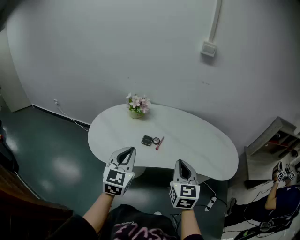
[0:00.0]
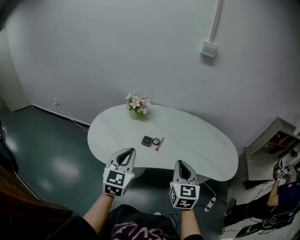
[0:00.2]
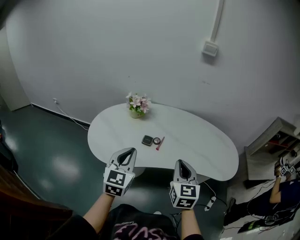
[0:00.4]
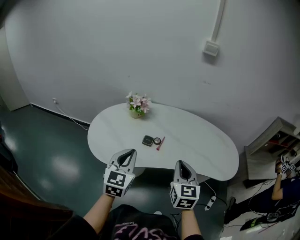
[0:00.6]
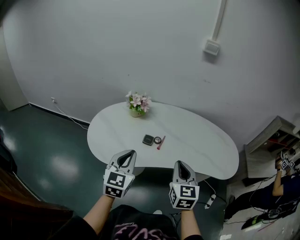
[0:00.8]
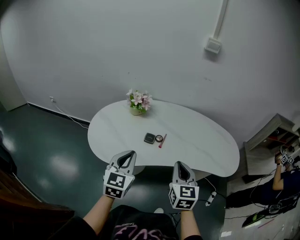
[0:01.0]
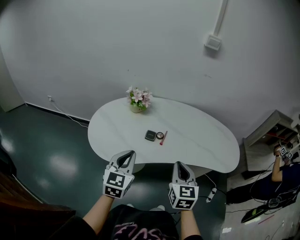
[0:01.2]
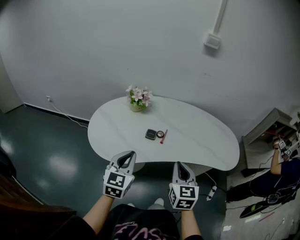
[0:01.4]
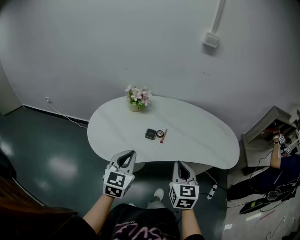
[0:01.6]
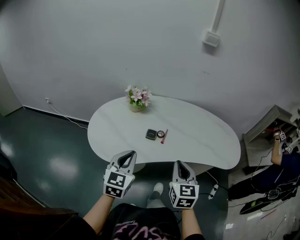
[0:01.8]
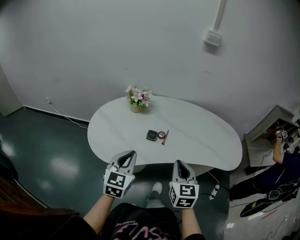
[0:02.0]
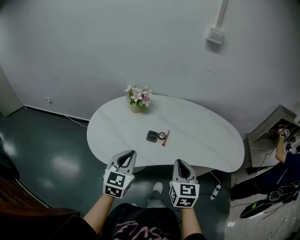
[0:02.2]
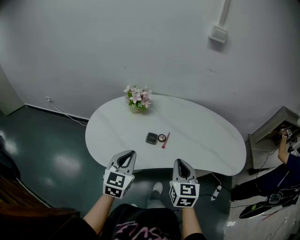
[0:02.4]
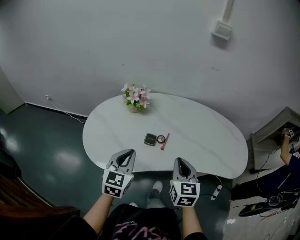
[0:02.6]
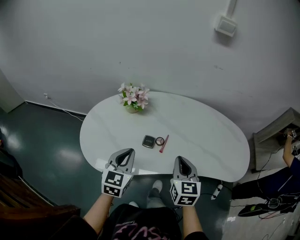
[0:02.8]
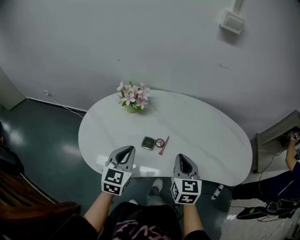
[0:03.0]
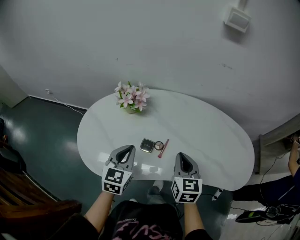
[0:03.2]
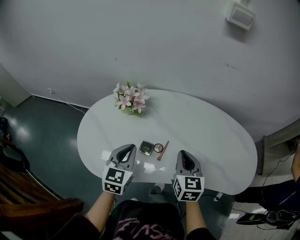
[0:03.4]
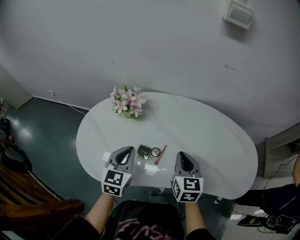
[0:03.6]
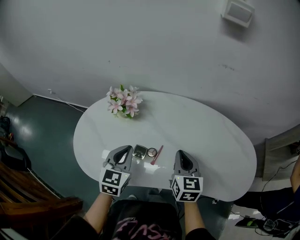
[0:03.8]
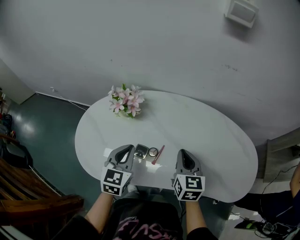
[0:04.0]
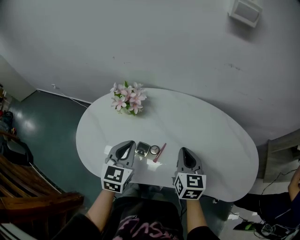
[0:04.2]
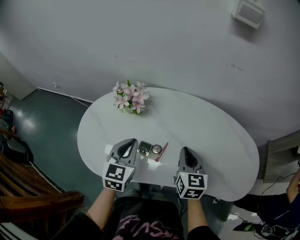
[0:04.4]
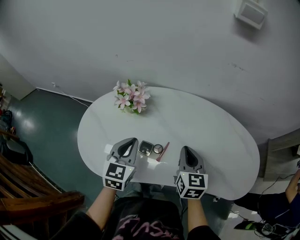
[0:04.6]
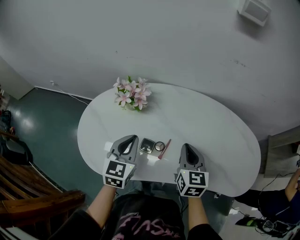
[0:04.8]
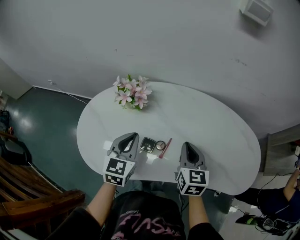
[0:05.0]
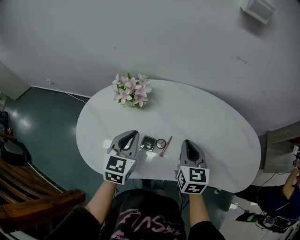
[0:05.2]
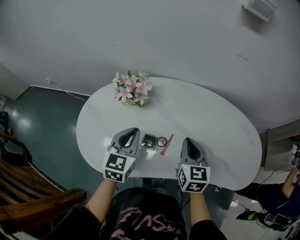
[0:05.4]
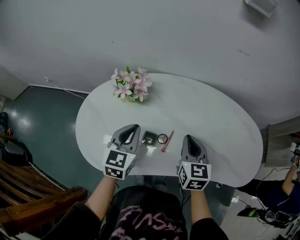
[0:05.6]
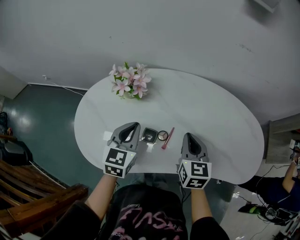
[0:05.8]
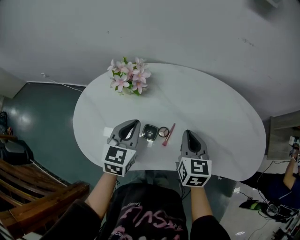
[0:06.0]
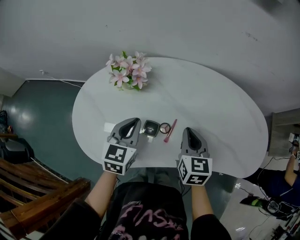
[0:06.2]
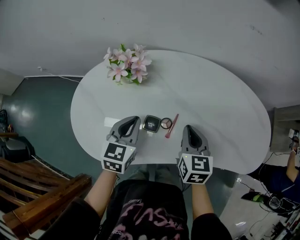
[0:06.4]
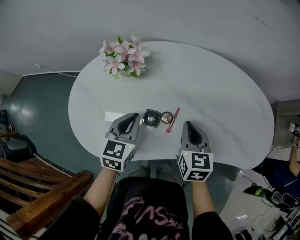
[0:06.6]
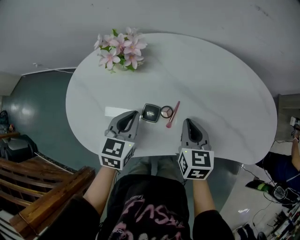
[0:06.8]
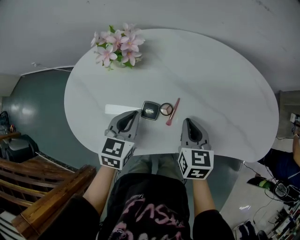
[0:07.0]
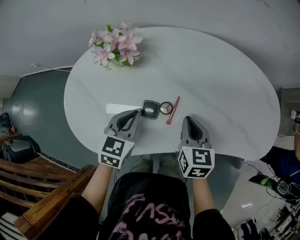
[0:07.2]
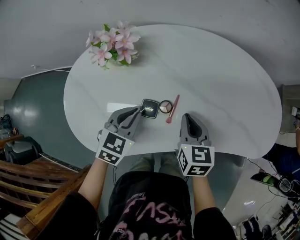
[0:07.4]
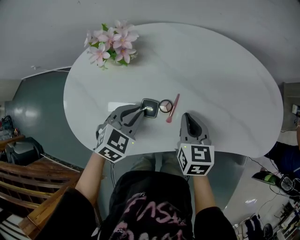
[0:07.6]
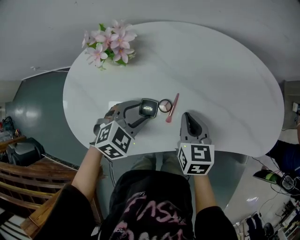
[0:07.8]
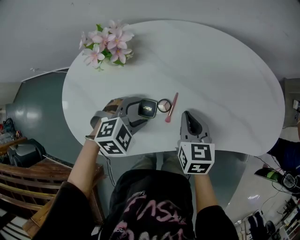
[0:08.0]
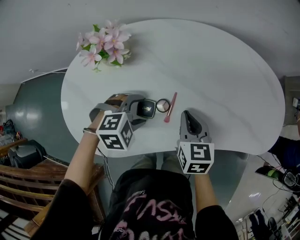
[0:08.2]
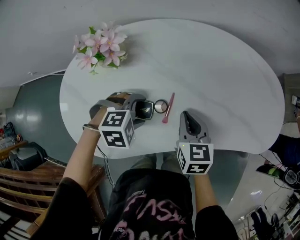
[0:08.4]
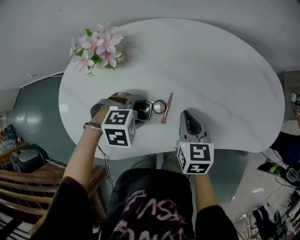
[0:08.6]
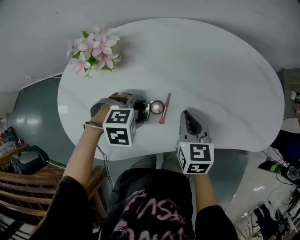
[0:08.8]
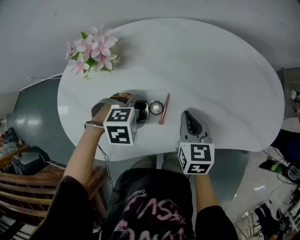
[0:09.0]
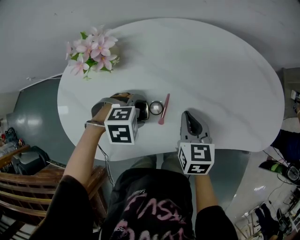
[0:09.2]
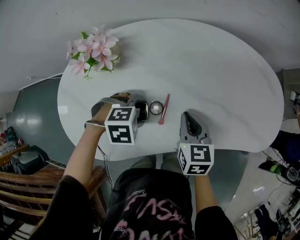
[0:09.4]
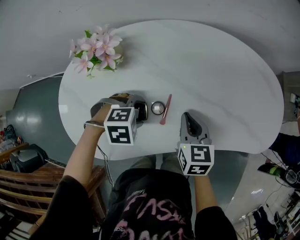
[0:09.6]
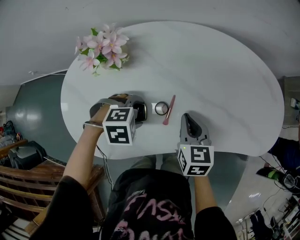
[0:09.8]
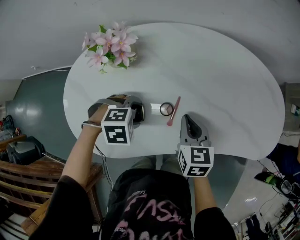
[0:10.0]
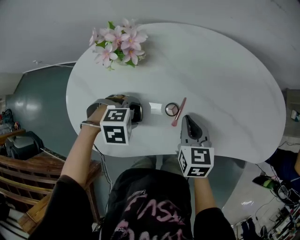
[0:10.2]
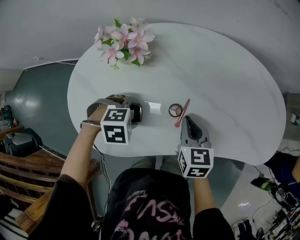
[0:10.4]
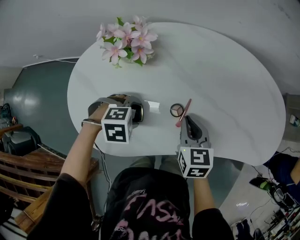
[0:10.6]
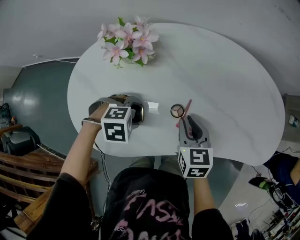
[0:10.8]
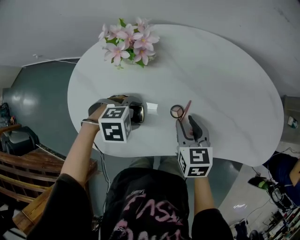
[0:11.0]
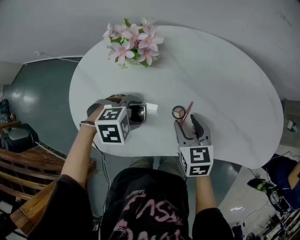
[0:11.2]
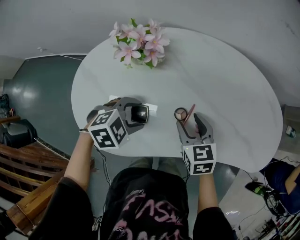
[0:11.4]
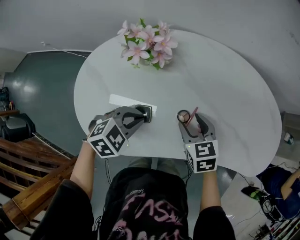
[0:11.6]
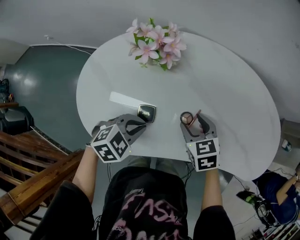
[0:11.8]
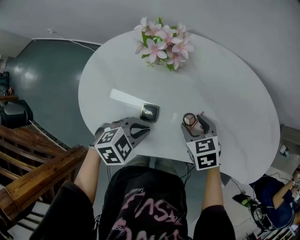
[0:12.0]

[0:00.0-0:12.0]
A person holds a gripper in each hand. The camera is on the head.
0:00.0 to 0:01.6: The right gripper ends up some 5 cm from where it was, while the left gripper heads downward, covering roughly 5 cm.
0:01.6 to 0:03.0: Both grippers travel together forward, about 15 cm.
0:03.0 to 0:04.4: The two grippers go approximately 10 cm forward.
0:04.4 to 0:06.0: The grippers move only a little.
0:06.0 to 0:07.6: The two grippers go some 10 cm downward. The left gripper changes its angle by approximately 40 degrees.
0:07.6 to 0:09.0: The left gripper is displaced downward by roughly 5 cm, swivels approximately 50 degrees, and opens its fingers.
0:09.0 to 0:10.4: The left gripper moves approximately 10 cm. The right gripper moves approximately 5 cm.
0:10.4 to 0:12.0: The left gripper shifts roughly 5 cm upward, turns by about 40 degrees, and closes its fingers. The right gripper moves roughly 5 cm, turns by approximately 40 degrees, and opens.

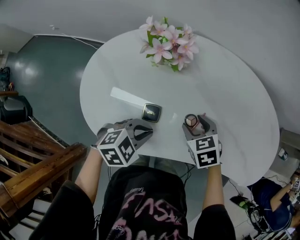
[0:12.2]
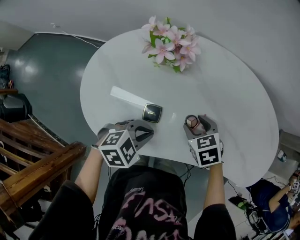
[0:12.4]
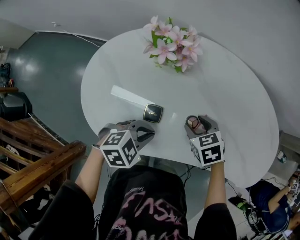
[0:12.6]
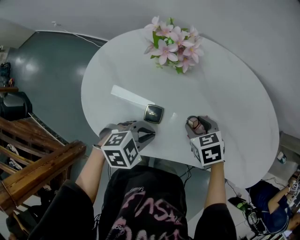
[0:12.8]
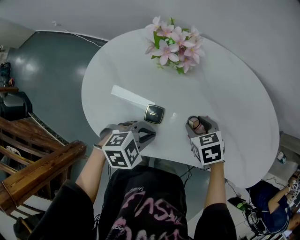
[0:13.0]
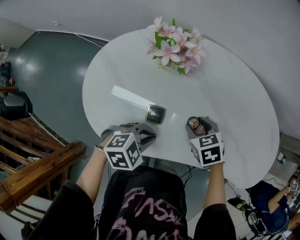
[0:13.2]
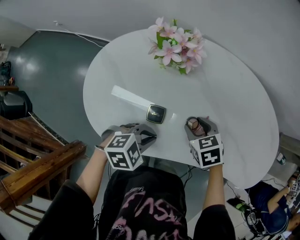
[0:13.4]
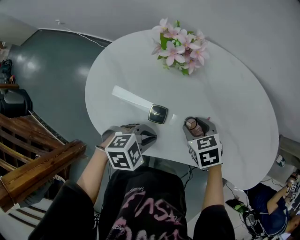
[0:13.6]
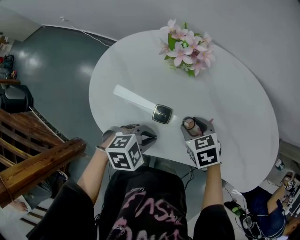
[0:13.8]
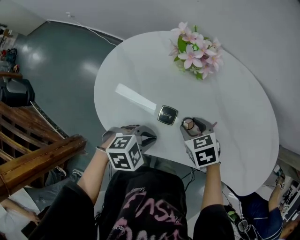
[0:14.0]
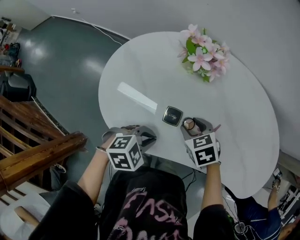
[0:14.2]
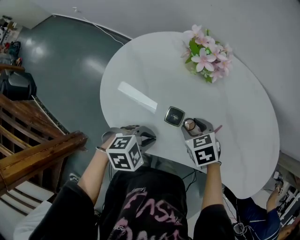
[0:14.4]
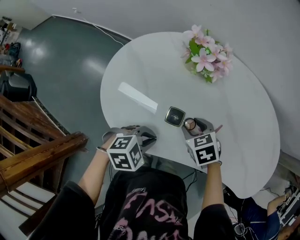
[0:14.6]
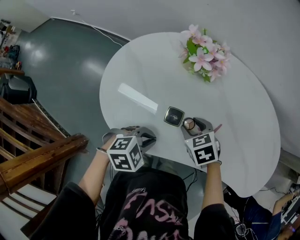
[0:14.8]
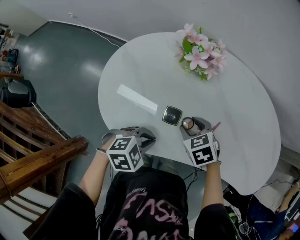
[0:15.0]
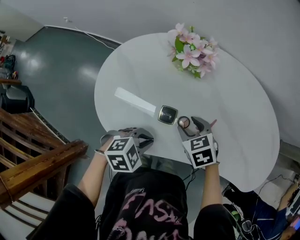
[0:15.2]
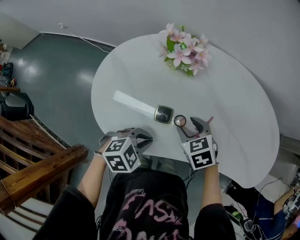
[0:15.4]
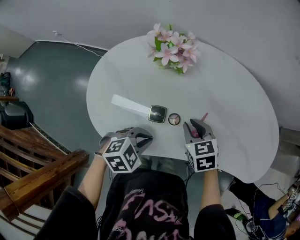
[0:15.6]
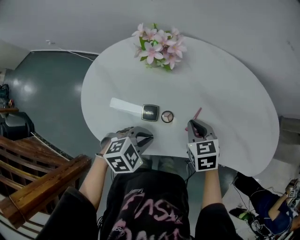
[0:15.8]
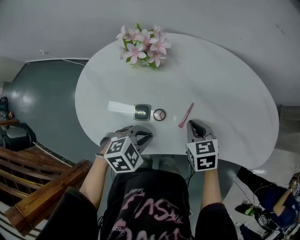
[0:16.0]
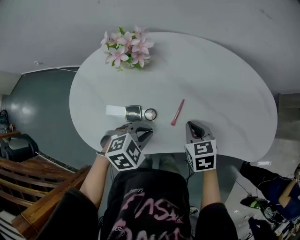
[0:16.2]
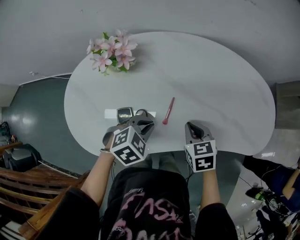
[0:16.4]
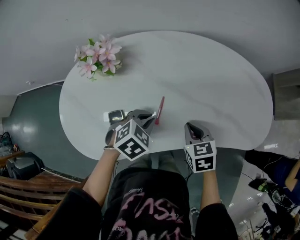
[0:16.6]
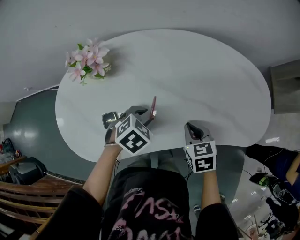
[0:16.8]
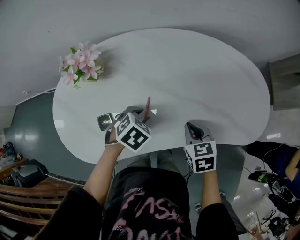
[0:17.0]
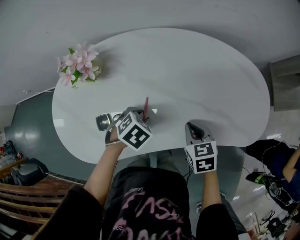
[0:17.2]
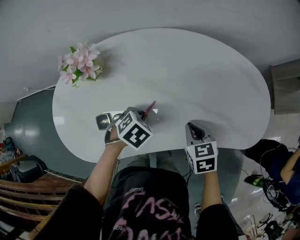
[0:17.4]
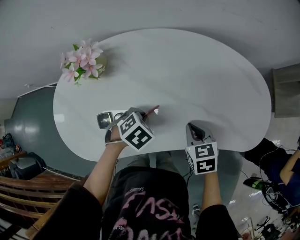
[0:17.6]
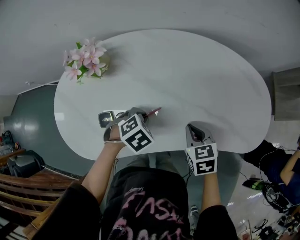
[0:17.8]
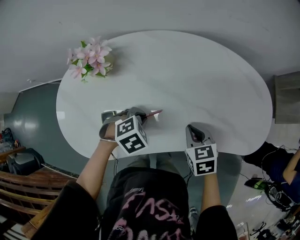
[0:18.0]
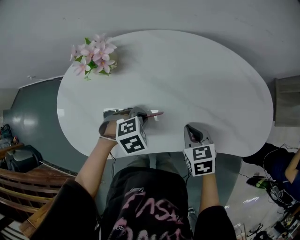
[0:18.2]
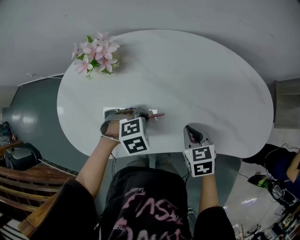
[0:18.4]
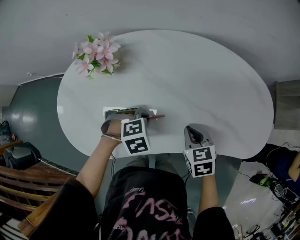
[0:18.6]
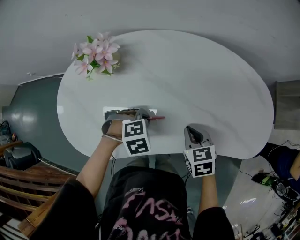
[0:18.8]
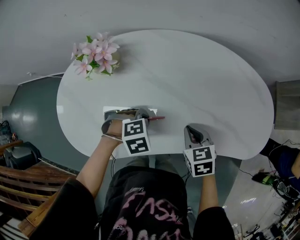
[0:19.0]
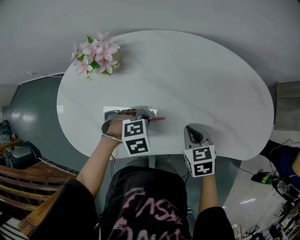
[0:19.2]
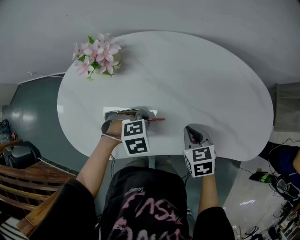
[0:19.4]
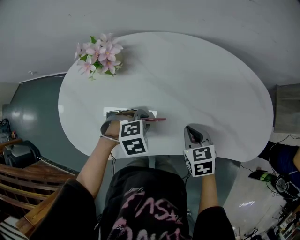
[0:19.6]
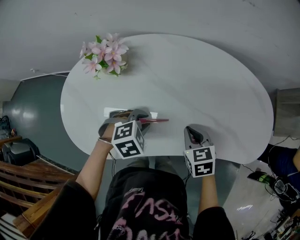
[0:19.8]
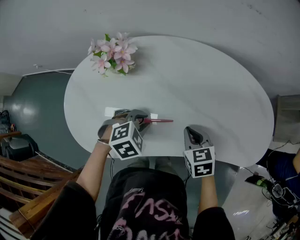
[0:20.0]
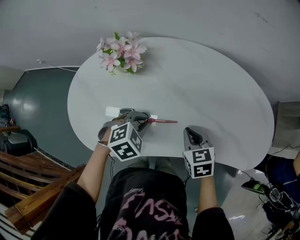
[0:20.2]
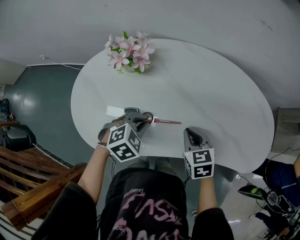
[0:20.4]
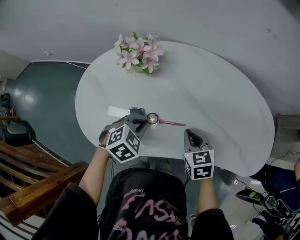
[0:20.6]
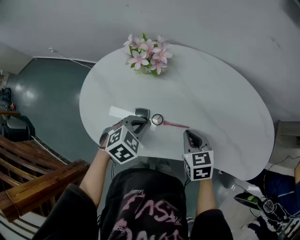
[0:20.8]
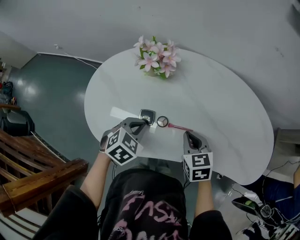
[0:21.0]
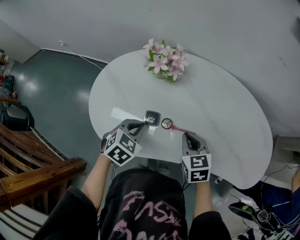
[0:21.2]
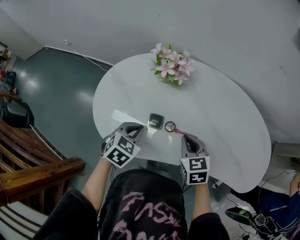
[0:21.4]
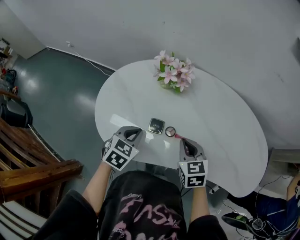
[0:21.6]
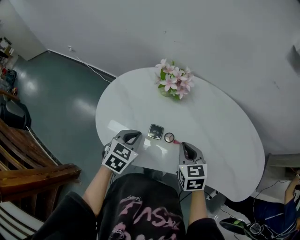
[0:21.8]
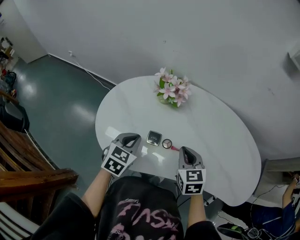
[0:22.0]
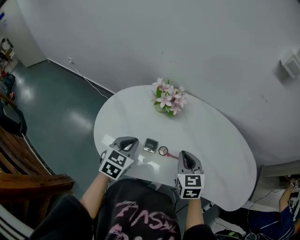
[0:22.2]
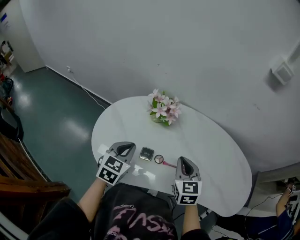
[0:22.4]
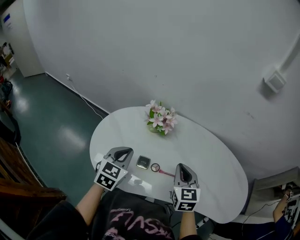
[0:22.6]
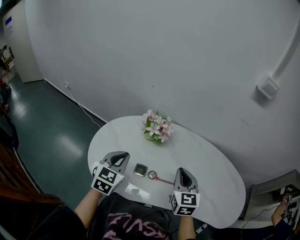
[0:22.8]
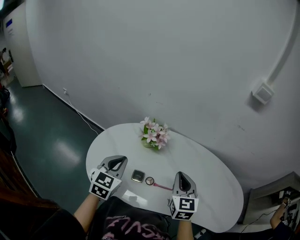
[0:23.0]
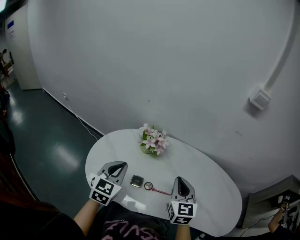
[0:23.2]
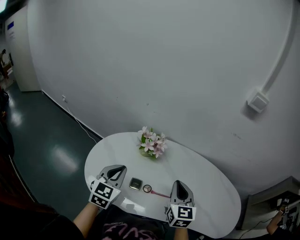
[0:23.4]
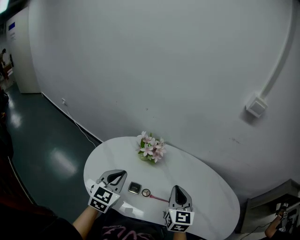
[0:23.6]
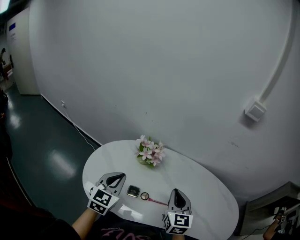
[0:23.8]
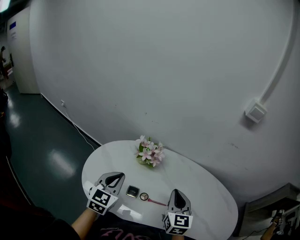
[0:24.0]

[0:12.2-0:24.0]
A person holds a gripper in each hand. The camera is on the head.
0:12.2 to 0:13.6: There are only small adjustments of the grippers.
0:13.6 to 0:15.2: The right gripper ends up approximately 5 cm from where it was.
0:15.2 to 0:16.6: The right gripper travels to the right by about 20 cm, rotates some 40 degrees, and closes. Meanwhile the left gripper is displaced forward and to the right by some 20 cm.
0:18.2 to 0:19.6: The grippers make only small movements.
0:19.6 to 0:21.0: The right gripper changes place by some 15 cm. Meanwhile the left gripper shifts by about 15 cm, and rotates about 40 degrees.
0:21.0 to 0:22.6: The left gripper is displaced upward and to the left by approximately 15 cm, and changes its angle by approximately 40 degrees; the right gripper shifts approximately 15 cm upward, and turns by some 20 degrees.
0:22.6 to 0:24.0: Both grippers travel together upward, about 5 cm.
